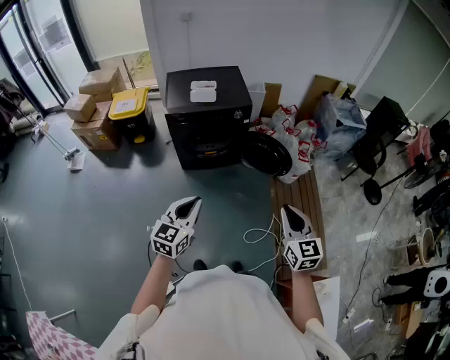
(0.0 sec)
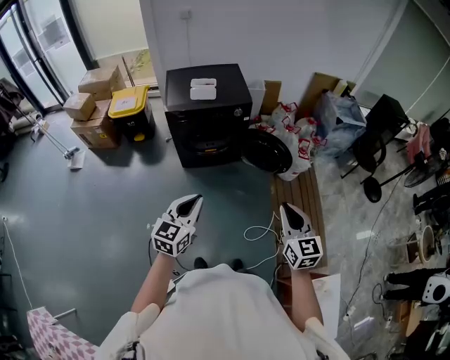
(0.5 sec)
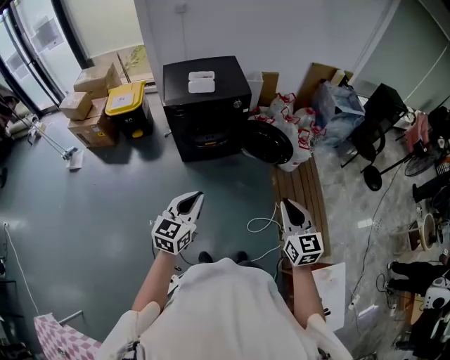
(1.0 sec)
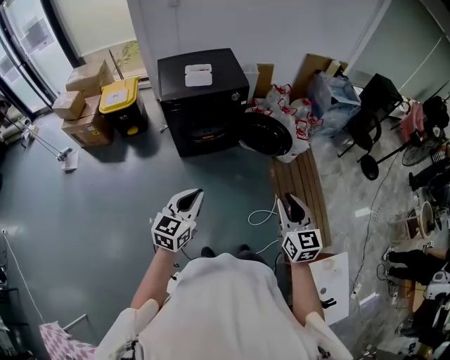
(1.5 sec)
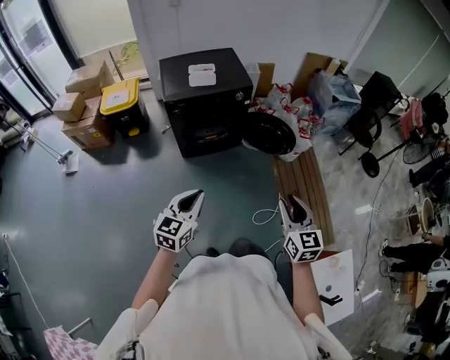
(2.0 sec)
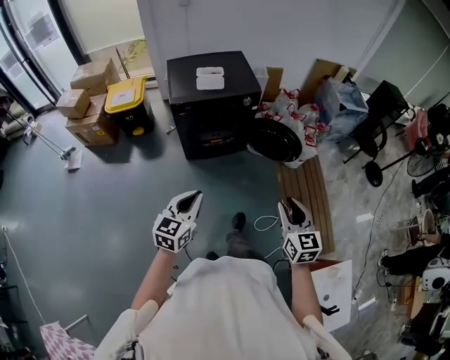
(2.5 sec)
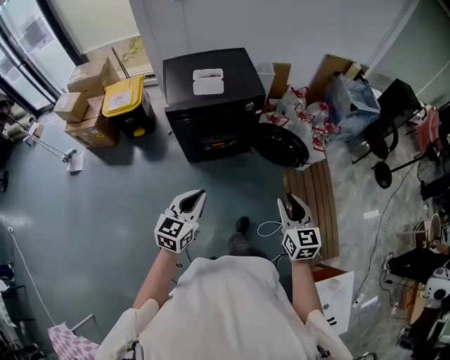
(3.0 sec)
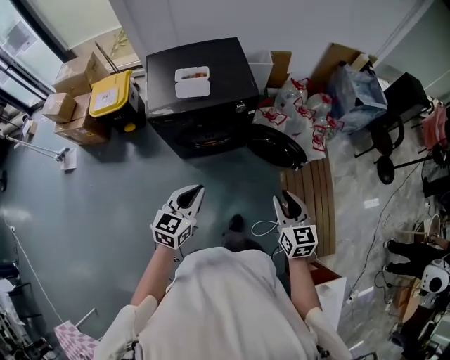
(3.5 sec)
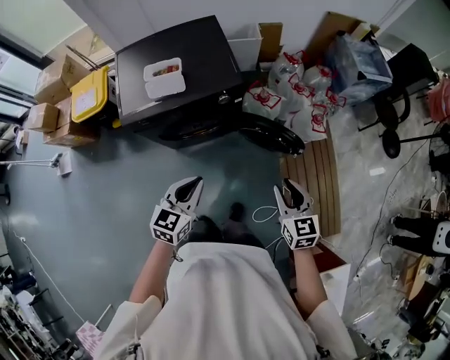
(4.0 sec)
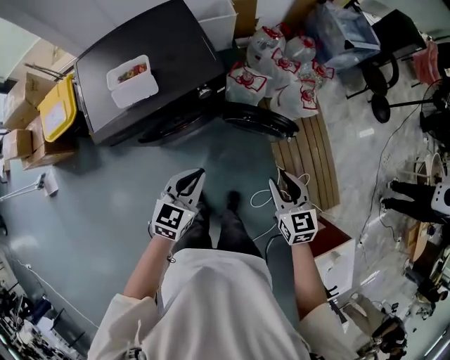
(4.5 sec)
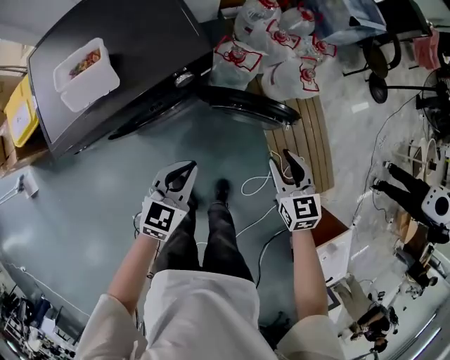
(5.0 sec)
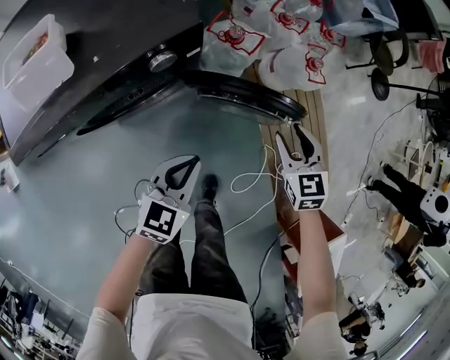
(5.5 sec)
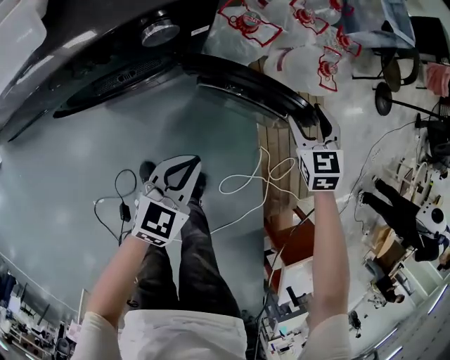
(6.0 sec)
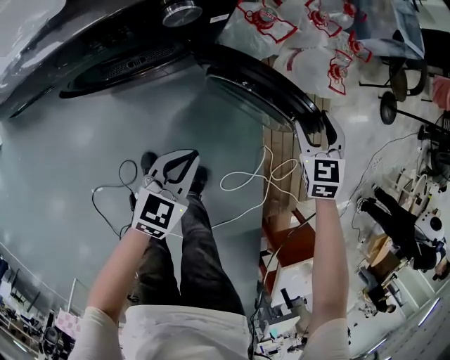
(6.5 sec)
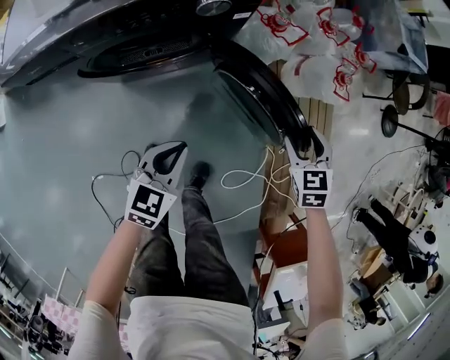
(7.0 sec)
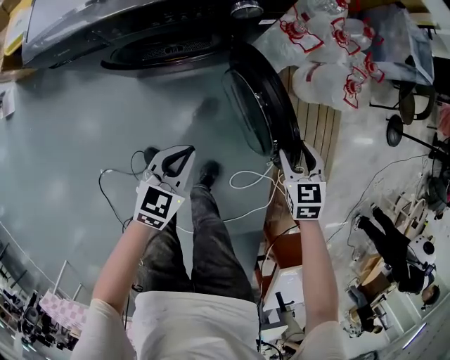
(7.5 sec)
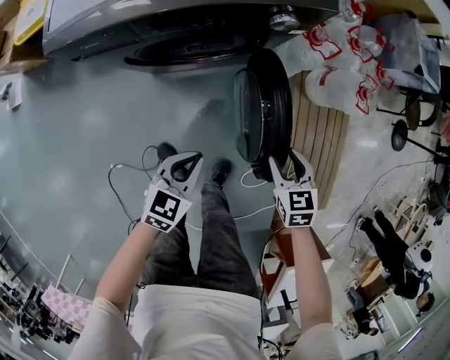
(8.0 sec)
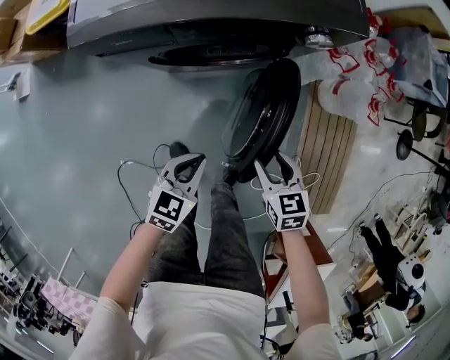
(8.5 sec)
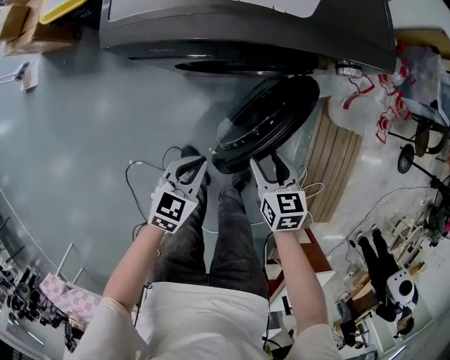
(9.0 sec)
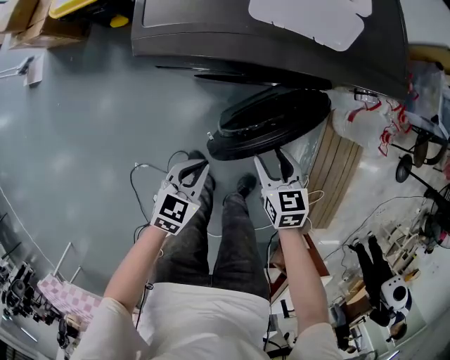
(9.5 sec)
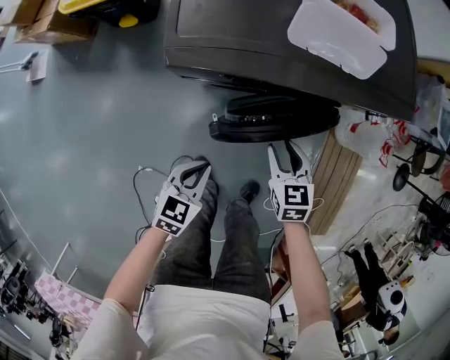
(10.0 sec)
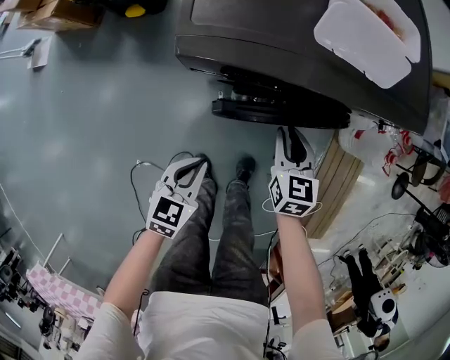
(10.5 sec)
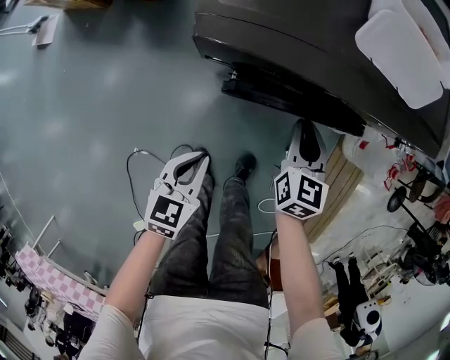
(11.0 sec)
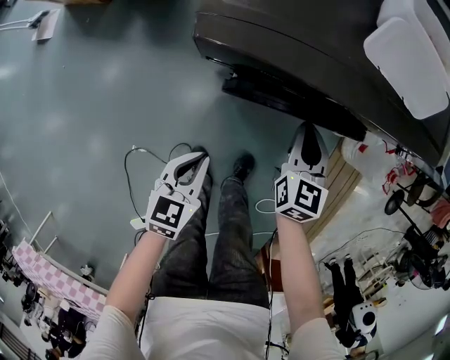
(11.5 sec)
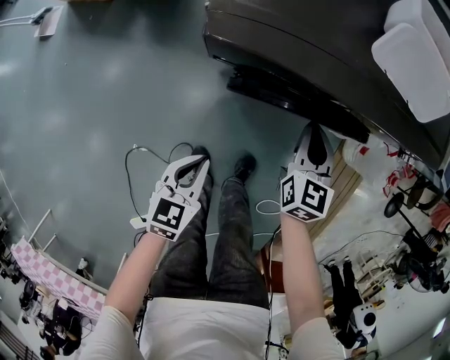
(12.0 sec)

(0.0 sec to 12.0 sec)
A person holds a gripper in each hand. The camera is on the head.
0.0 sec - 2.0 sec: Both grippers move to the left, about 10 cm.
2.0 sec - 4.0 sec: The two grippers travel together, forward, approximately 40 cm.
4.0 sec - 6.0 sec: The two grippers go roughly 40 cm downward and forward. The right gripper swivels about 30 degrees, and opens its fingers.
6.0 sec - 8.0 sec: The left gripper heads to the left and backward, covering about 20 cm, while the right gripper travels backward and to the left by about 25 cm.
8.0 sec - 10.0 sec: Both grippers travel together to the left, roughly 25 cm.
10.0 sec - 12.0 sec: The left gripper ends up roughly 5 cm from where it was; the right gripper travels forward by about 10 cm, and closes its fingers.

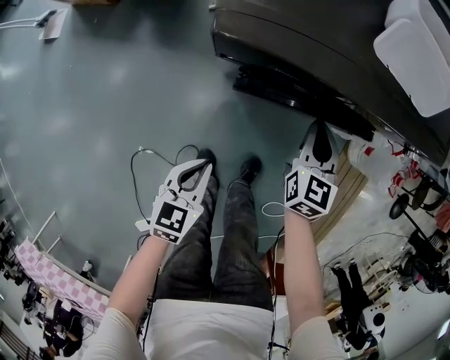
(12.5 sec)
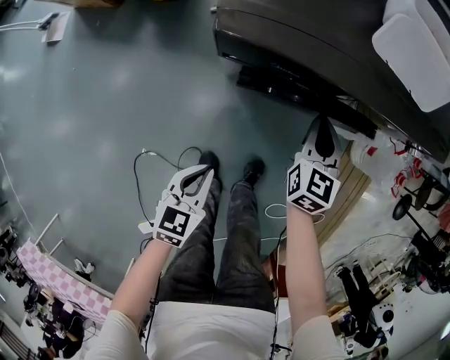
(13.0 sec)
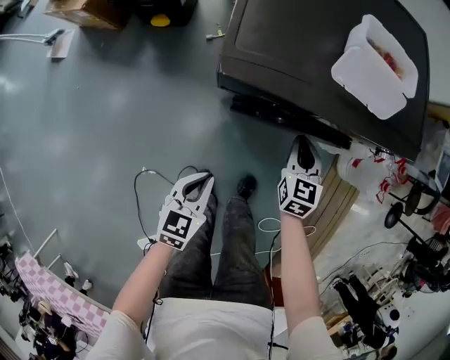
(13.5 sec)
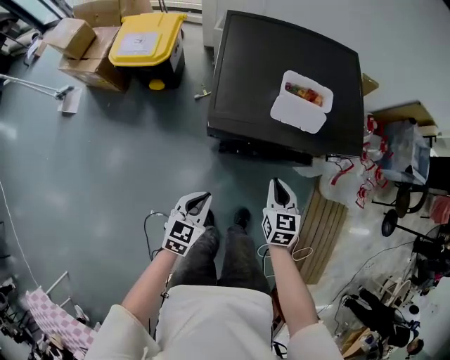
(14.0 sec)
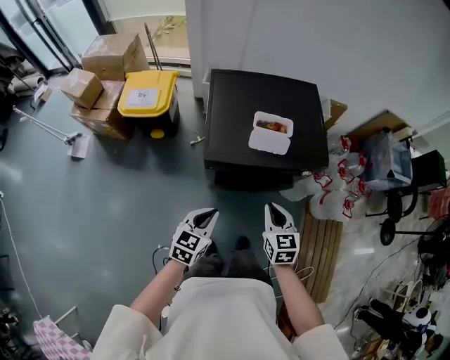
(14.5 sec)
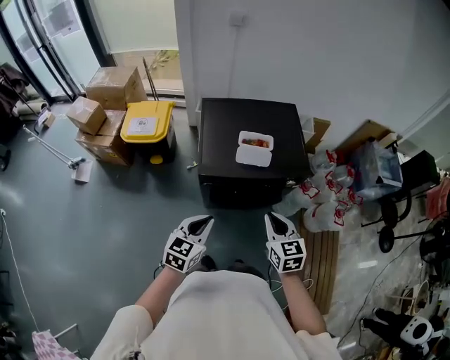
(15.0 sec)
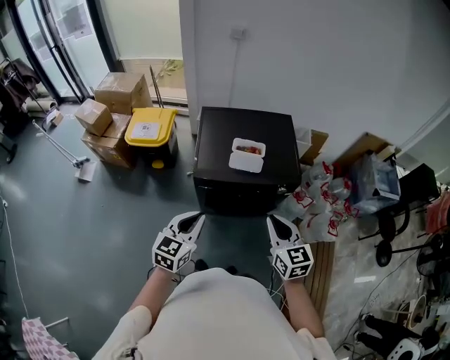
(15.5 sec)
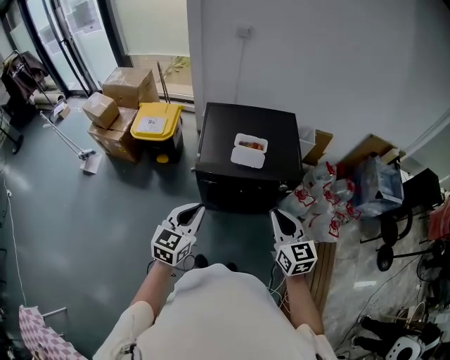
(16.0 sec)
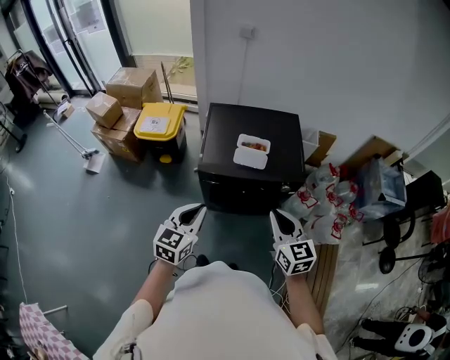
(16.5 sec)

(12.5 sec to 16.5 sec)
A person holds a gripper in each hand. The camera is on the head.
12.5 sec - 14.5 sec: The grippers both shift upward by roughly 35 cm.
14.5 sec - 16.5 sec: Both grippers move upward, about 20 cm.

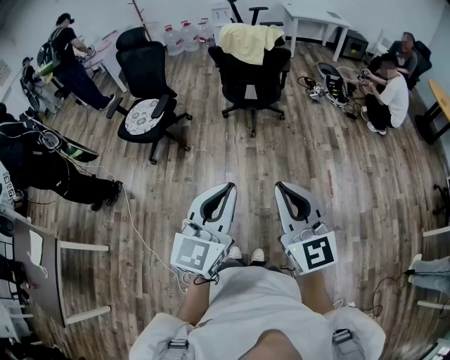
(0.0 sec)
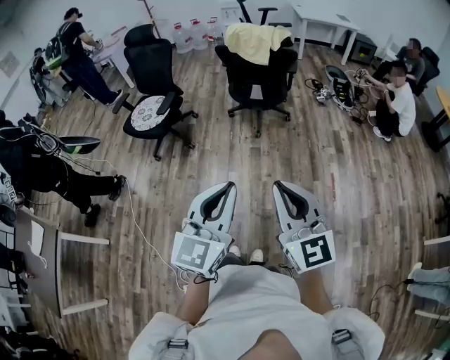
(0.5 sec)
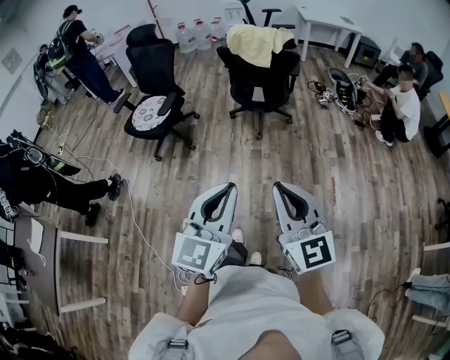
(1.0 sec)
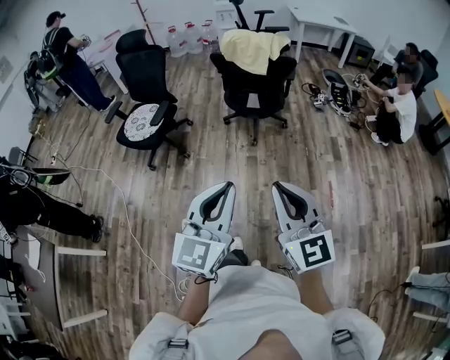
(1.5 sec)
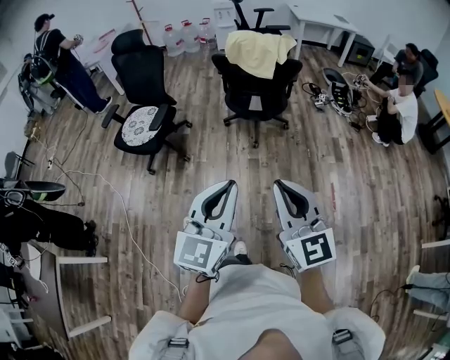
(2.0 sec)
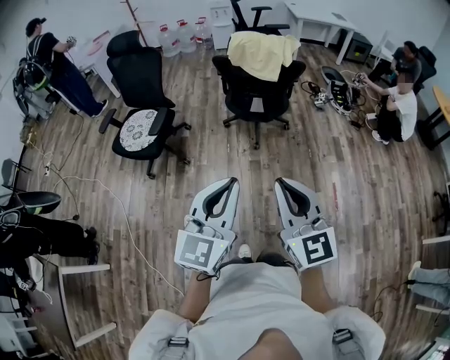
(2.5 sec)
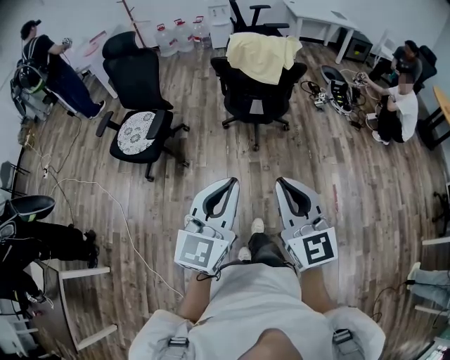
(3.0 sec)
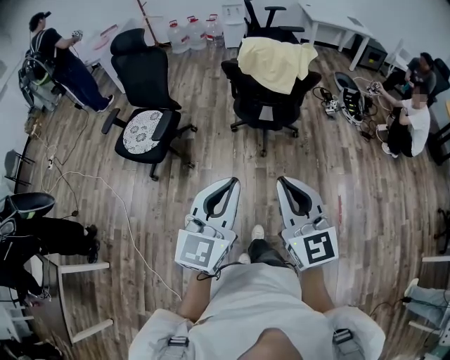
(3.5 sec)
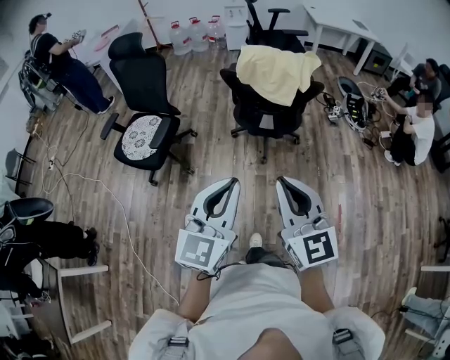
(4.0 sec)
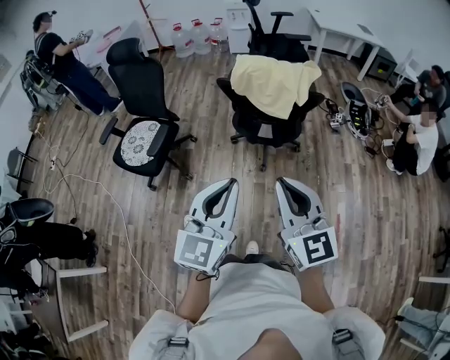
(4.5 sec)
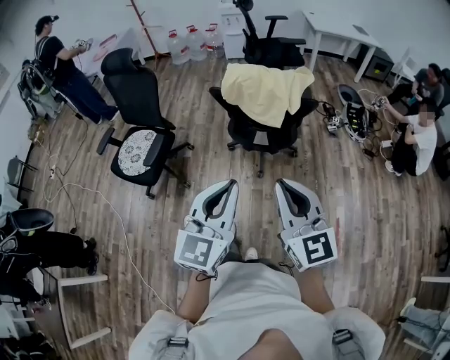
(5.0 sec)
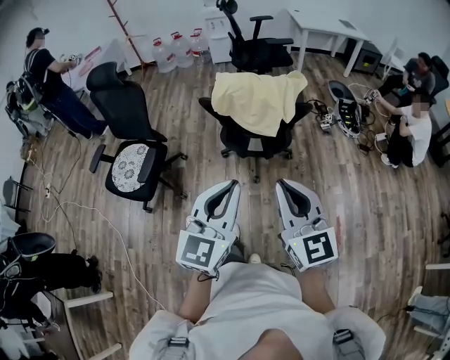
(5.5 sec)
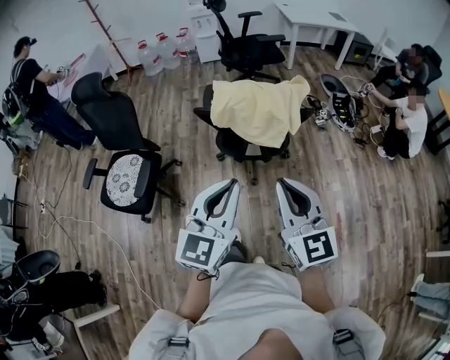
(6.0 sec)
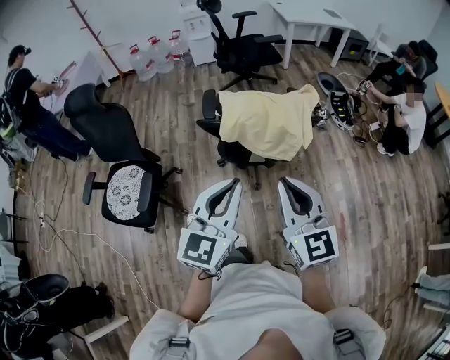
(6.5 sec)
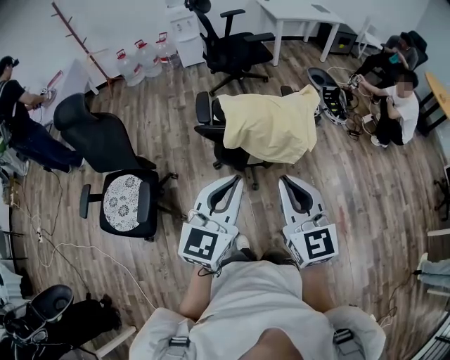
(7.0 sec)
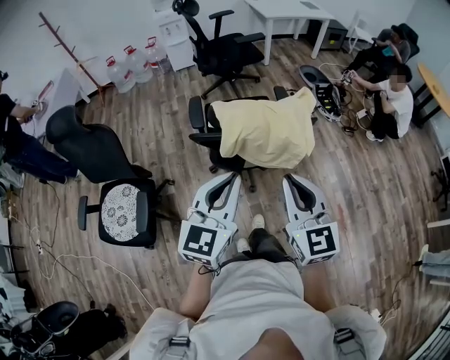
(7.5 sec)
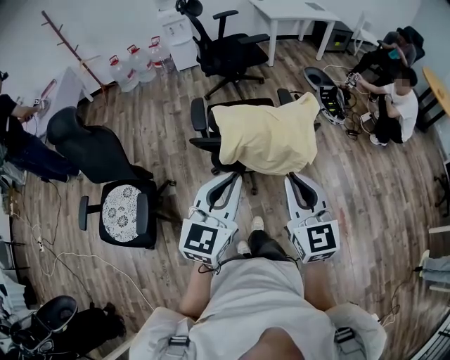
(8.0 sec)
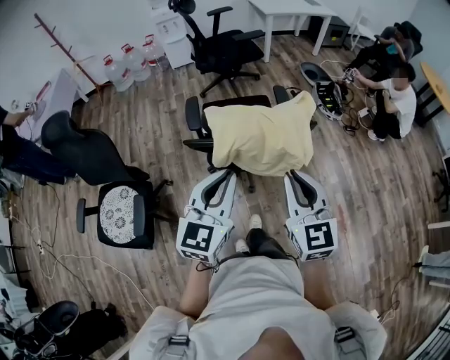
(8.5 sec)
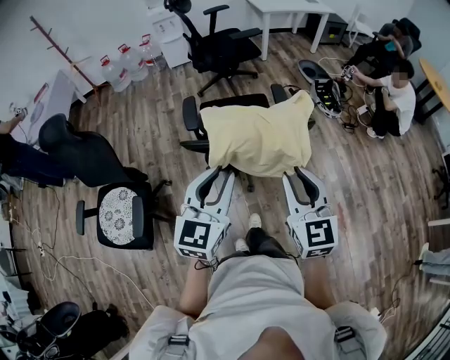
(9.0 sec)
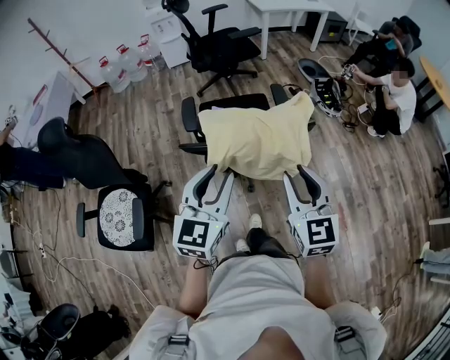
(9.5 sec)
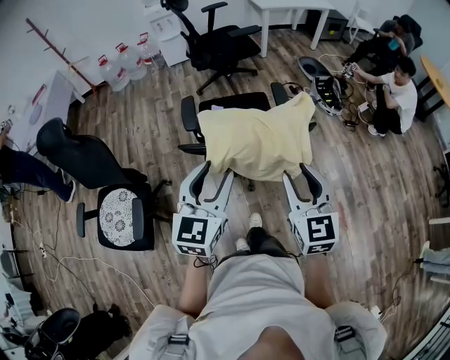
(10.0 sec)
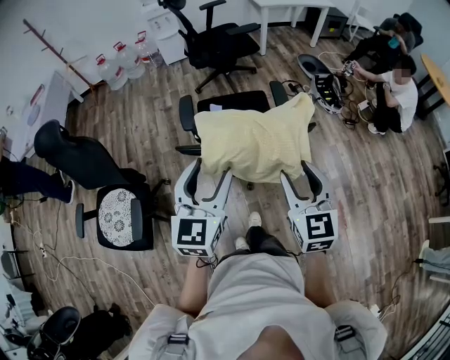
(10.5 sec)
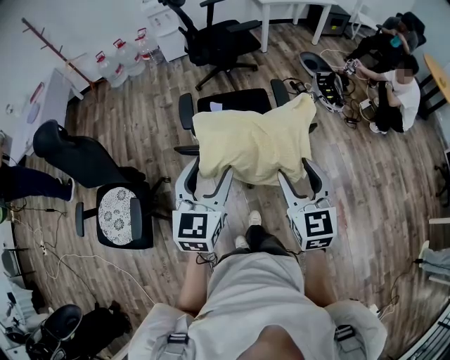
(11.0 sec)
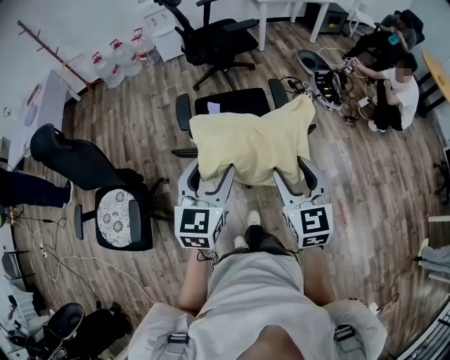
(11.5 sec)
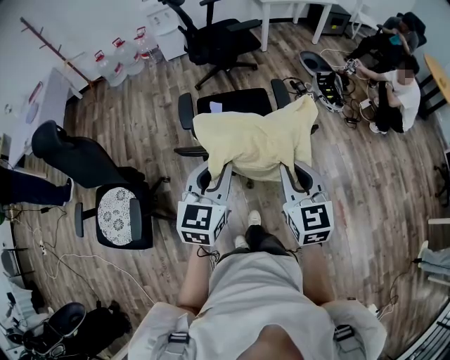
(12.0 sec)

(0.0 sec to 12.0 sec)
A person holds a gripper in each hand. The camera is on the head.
0.0 sec - 2.0 sec: The two grippers go approximately 15 cm forward.
2.0 sec - 4.0 sec: Both grippers travel together forward, approximately 20 cm.
4.0 sec - 6.0 sec: The two grippers go approximately 20 cm forward.
6.0 sec - 8.0 sec: The left gripper heads forward and to the left, covering some 15 cm, while the right gripper is displaced forward by some 15 cm.
8.0 sec - 10.0 sec: Both grippers move forward, some 5 cm. The right gripper opens its fingers. Meanwhile the left gripper opens.
10.0 sec - 12.0 sec: The left gripper ends up approximately 5 cm from where it was, and closes; the right gripper changes place by some 5 cm, and closes.
